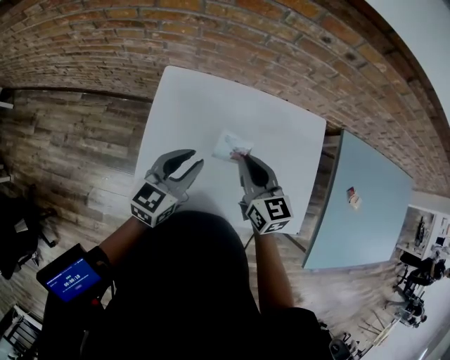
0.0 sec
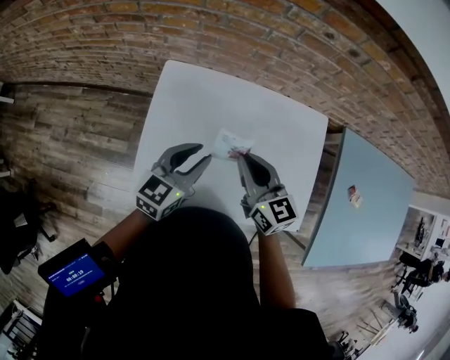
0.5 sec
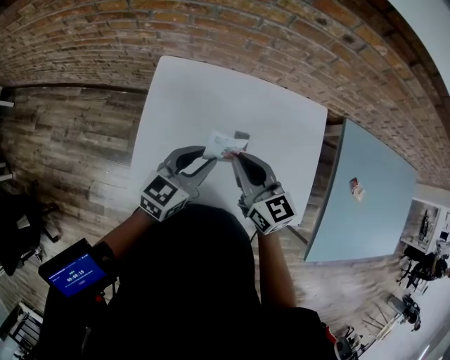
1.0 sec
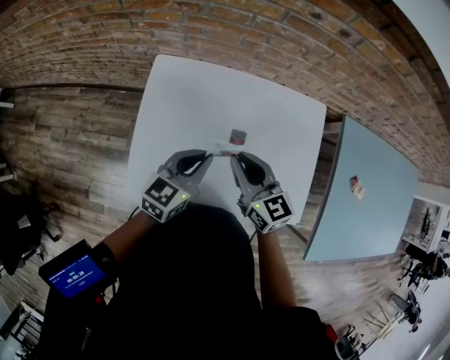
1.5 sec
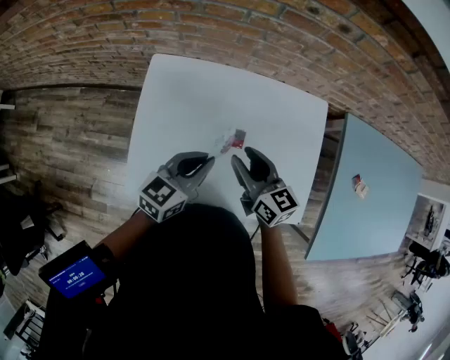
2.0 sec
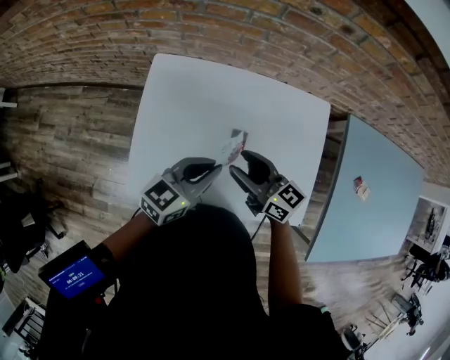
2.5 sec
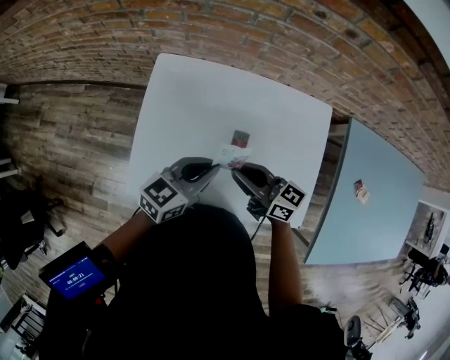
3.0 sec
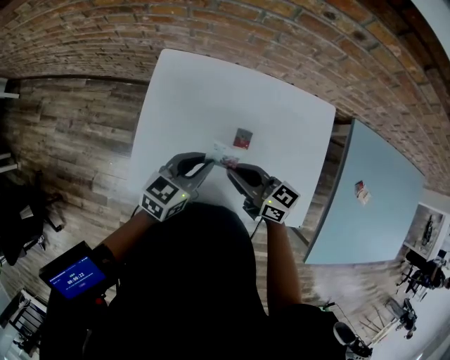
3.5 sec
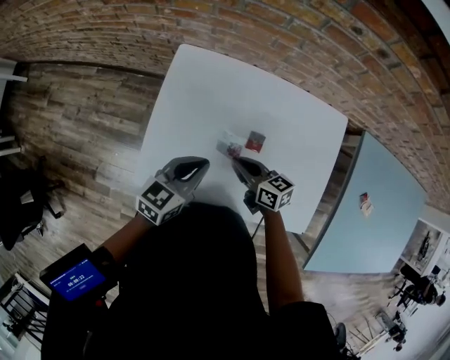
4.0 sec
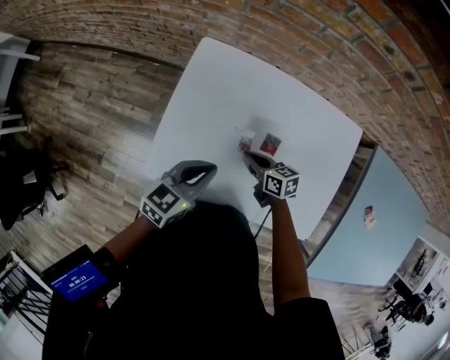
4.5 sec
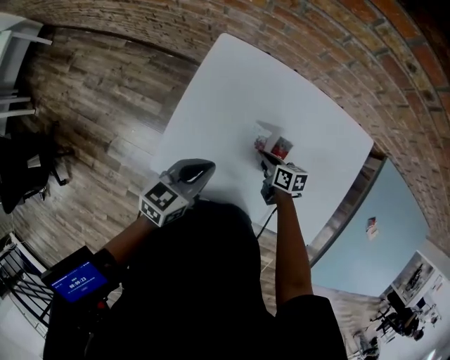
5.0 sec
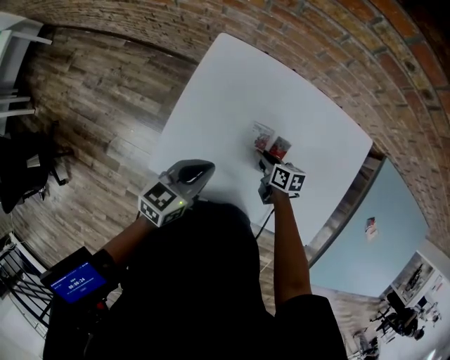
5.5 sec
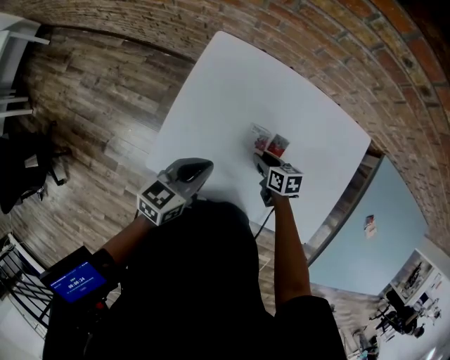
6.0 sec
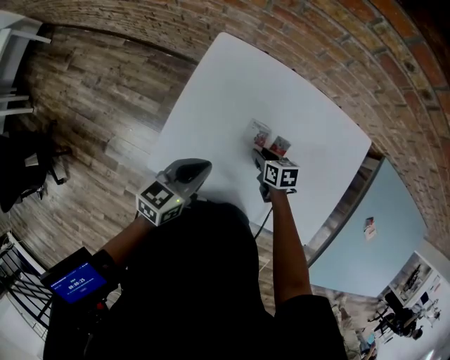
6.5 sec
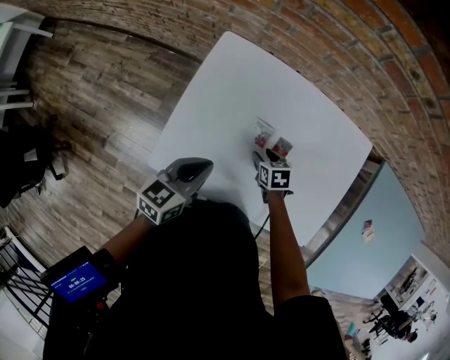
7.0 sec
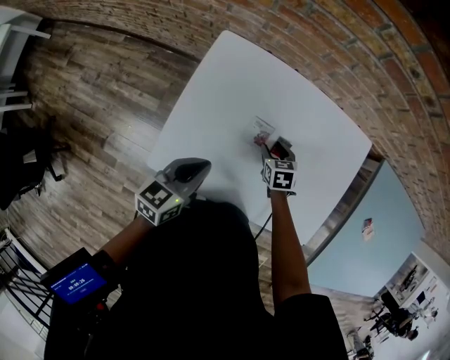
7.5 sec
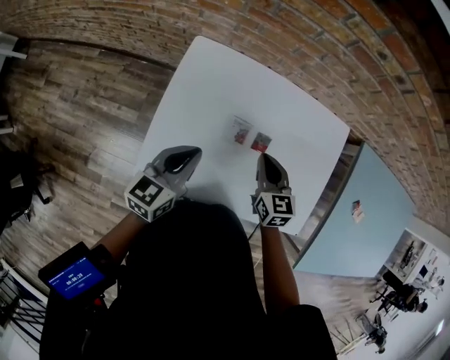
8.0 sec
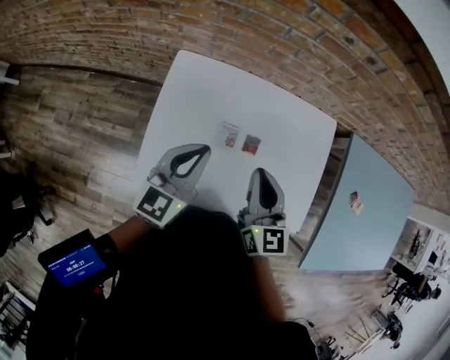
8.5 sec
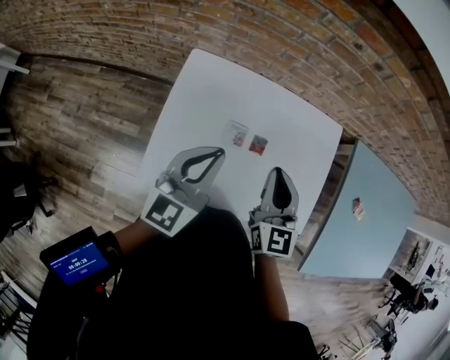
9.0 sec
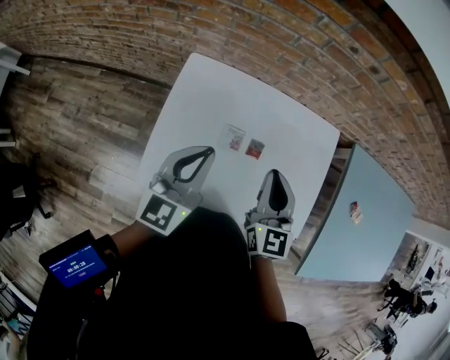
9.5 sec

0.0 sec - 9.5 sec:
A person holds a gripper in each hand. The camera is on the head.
0.0 sec - 2.0 sec: The right gripper opens its fingers. The left gripper shifts some 10 cm to the right, and closes its fingers.
2.0 sec - 4.0 sec: The left gripper travels to the left by roughly 5 cm. Meanwhile the right gripper moves downward, approximately 10 cm, changes its angle by some 30 degrees, and closes up.
4.0 sec - 5.5 sec: The left gripper ends up approximately 5 cm from where it was, while the right gripper moves downward, about 10 cm, and rotates roughly 20 degrees.
5.5 sec - 7.5 sec: The right gripper turns by some 40 degrees, and opens its fingers.
7.5 sec - 9.5 sec: The left gripper moves upward, about 15 cm, and changes its angle by about 30 degrees. The right gripper goes approximately 30 cm upward, tilts its fingers some 40 degrees upward, and closes its fingers.

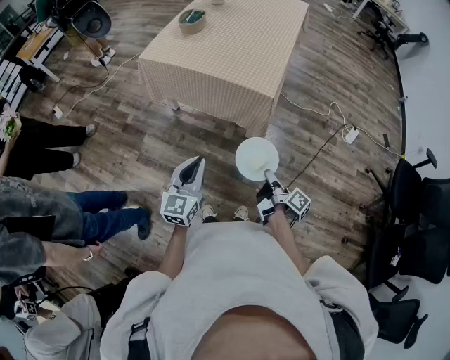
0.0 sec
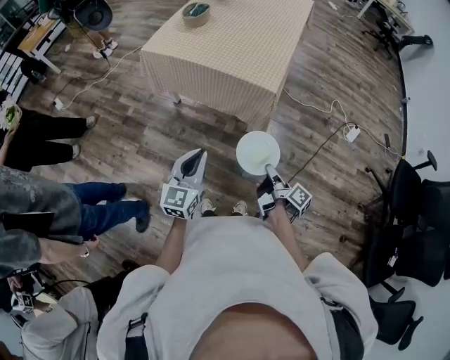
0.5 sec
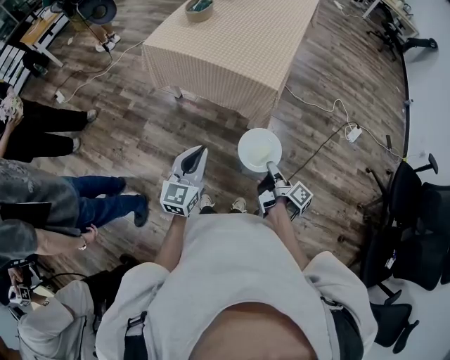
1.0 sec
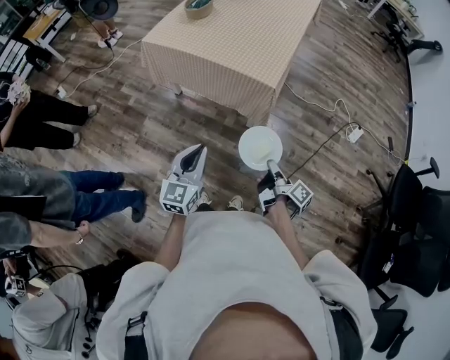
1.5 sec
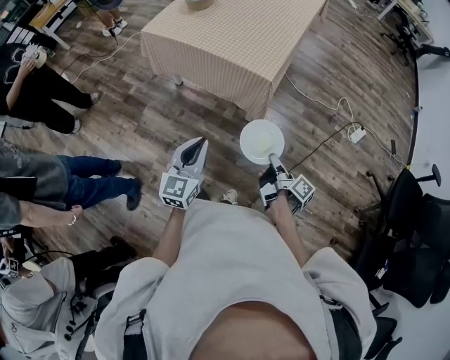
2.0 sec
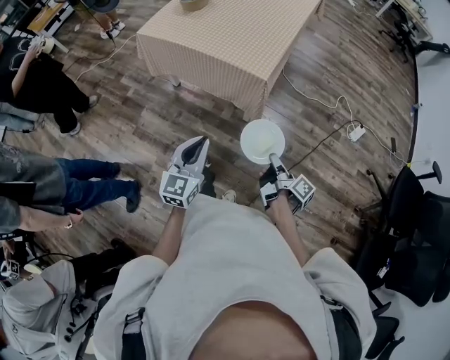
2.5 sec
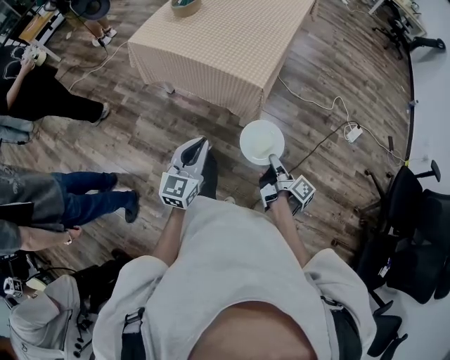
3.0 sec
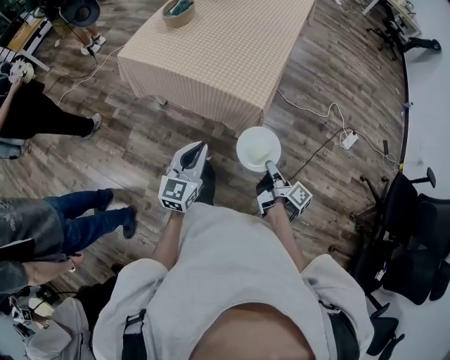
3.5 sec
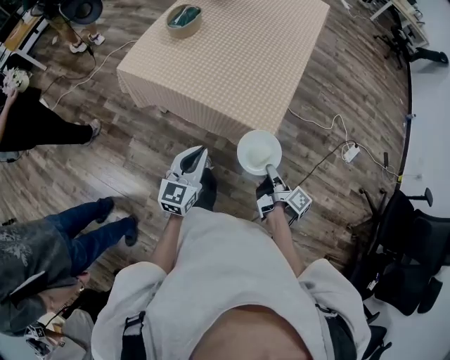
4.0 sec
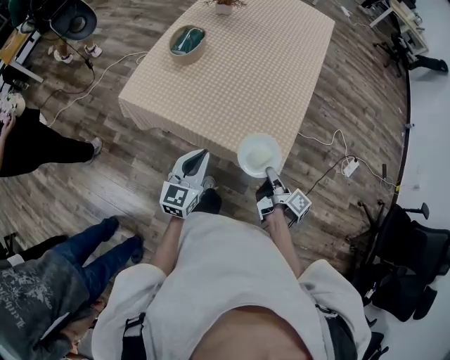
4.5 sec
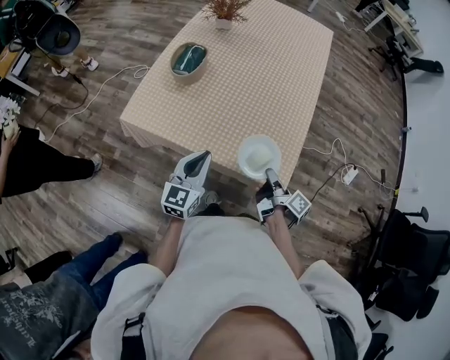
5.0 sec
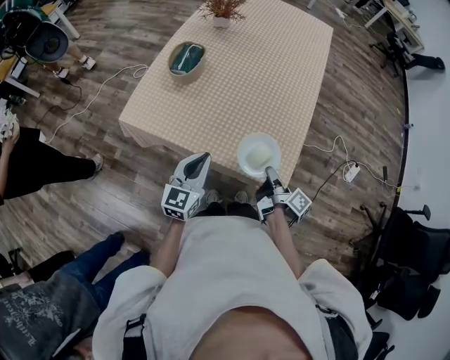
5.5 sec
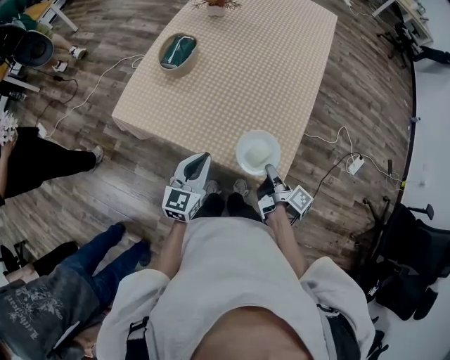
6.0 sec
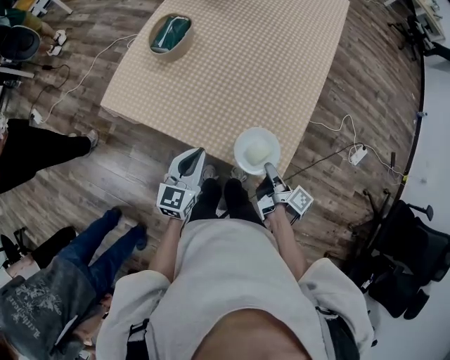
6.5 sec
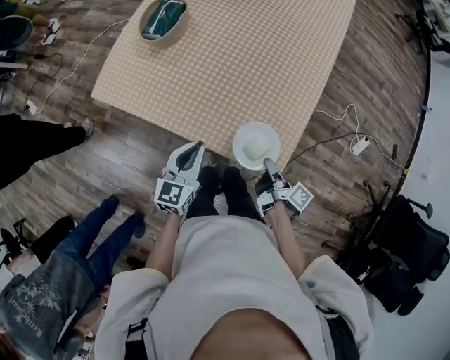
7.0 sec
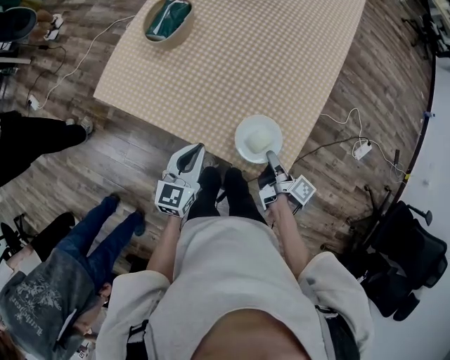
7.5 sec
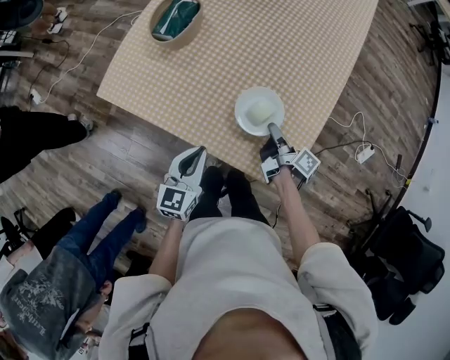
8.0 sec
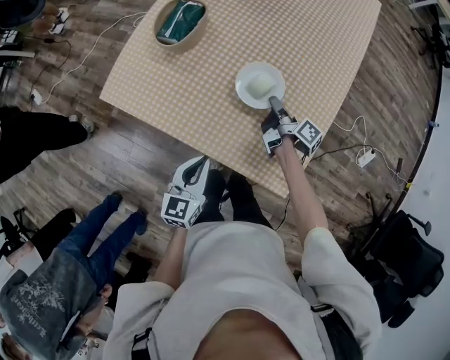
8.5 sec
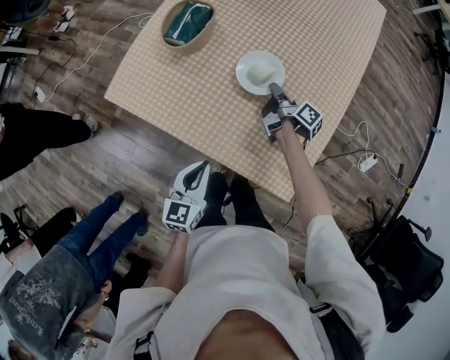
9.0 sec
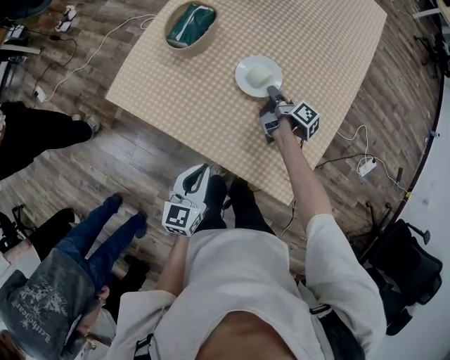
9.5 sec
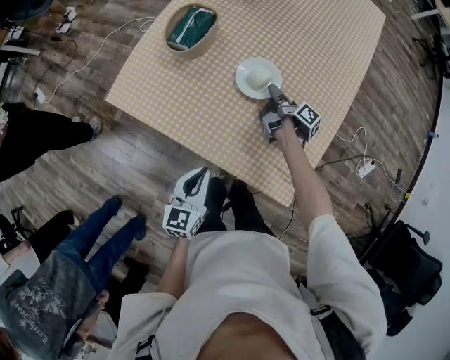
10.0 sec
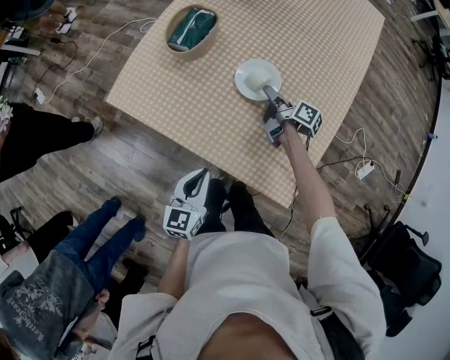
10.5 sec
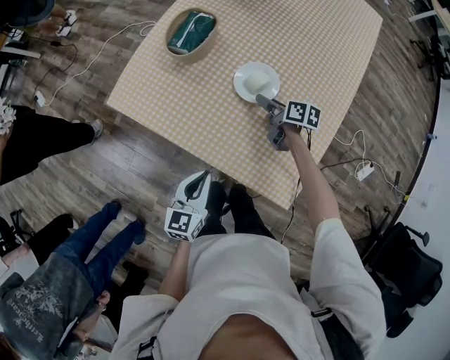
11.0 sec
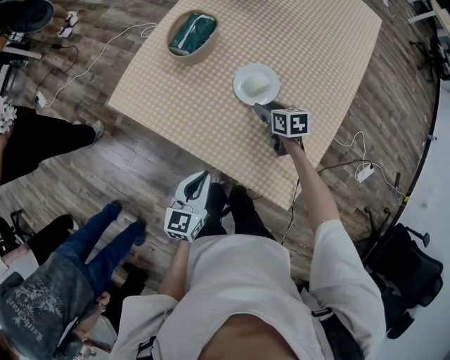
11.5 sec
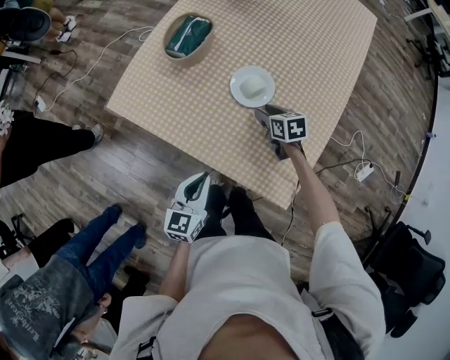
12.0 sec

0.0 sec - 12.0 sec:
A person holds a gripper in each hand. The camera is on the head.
0.0 sec - 2.0 sec: The left gripper shifts by about 10 cm.
2.0 sec - 4.0 sec: The left gripper changes place by roughly 30 cm.
4.0 sec - 6.0 sec: The left gripper shifts by approximately 20 cm.
6.0 sec - 8.0 sec: The left gripper is displaced downward by roughly 10 cm.

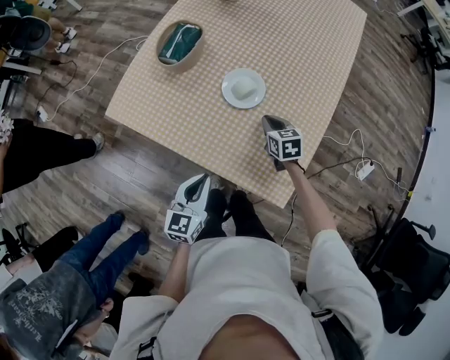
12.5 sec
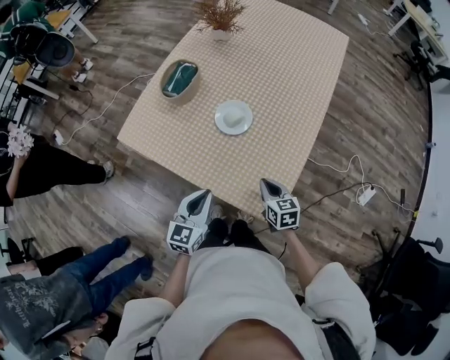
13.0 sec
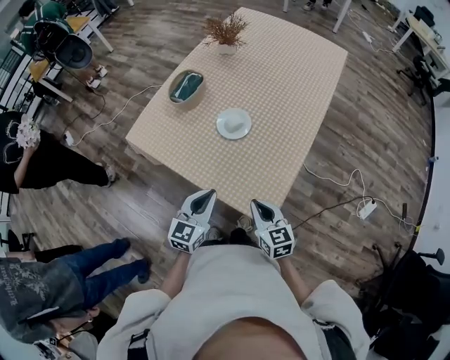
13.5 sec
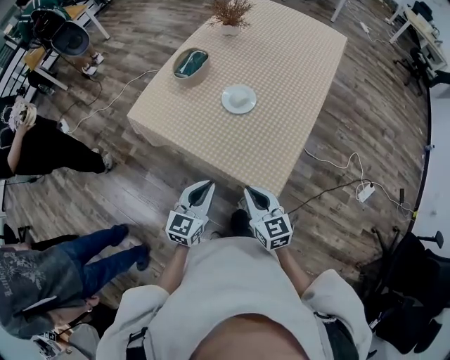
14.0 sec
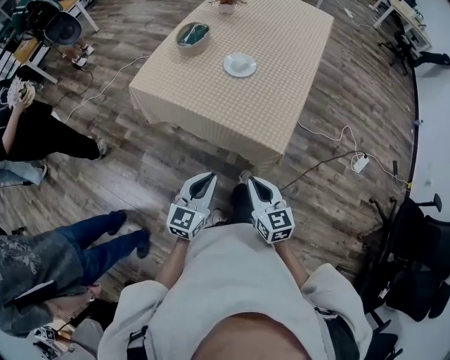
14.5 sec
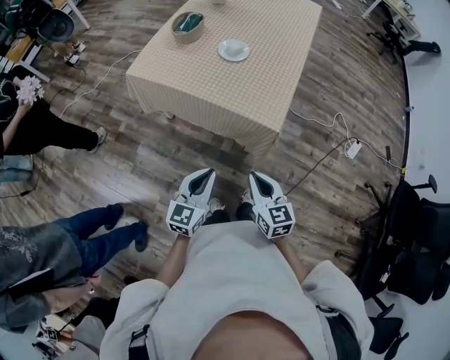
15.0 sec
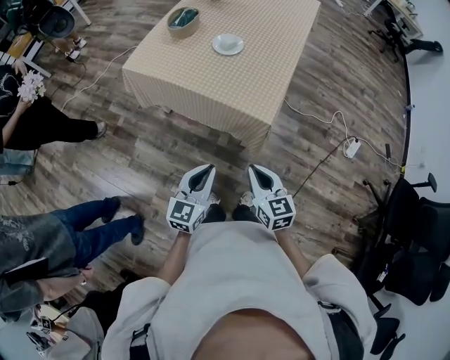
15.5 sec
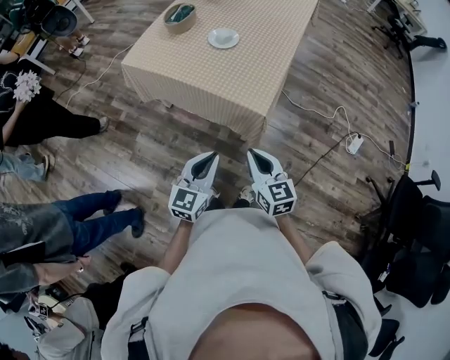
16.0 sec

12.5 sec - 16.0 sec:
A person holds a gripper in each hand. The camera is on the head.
12.5 sec - 14.5 sec: The left gripper moves some 25 cm.
14.5 sec - 16.0 sec: The left gripper ends up roughly 10 cm from where it was.

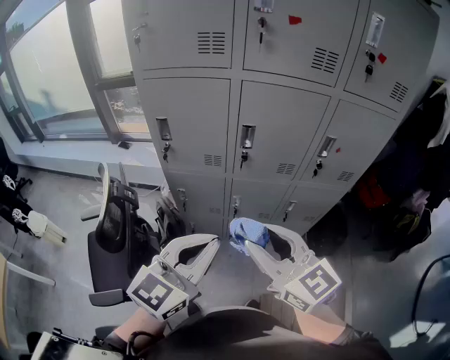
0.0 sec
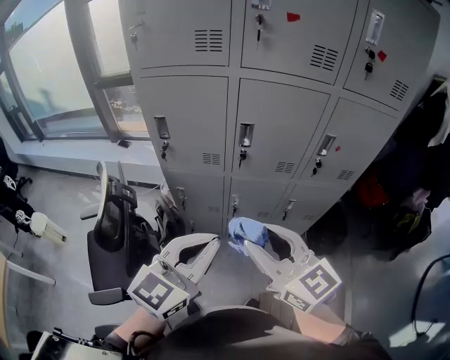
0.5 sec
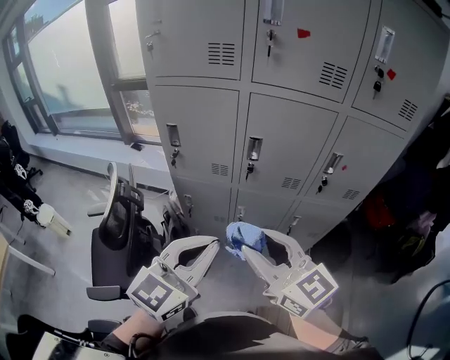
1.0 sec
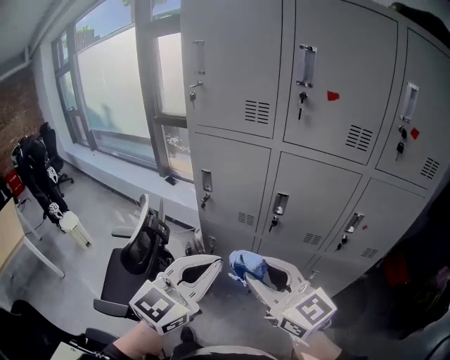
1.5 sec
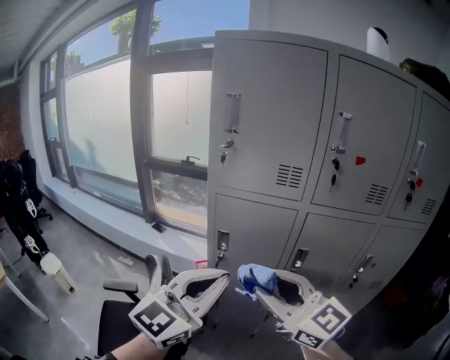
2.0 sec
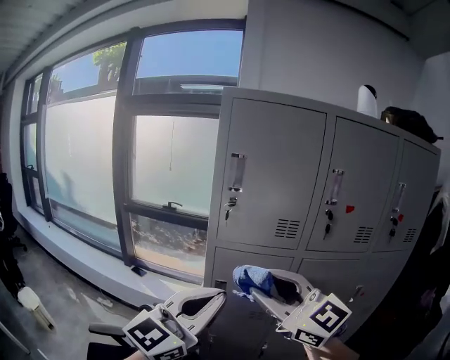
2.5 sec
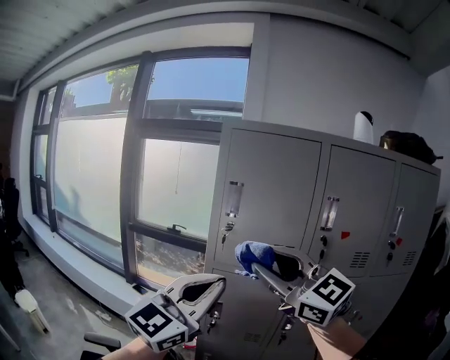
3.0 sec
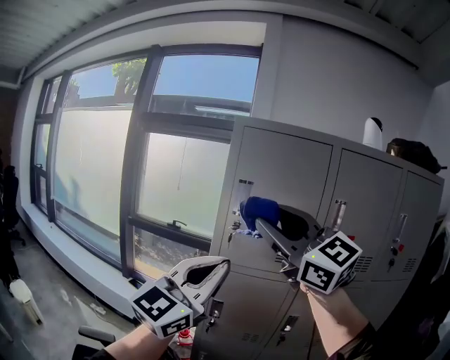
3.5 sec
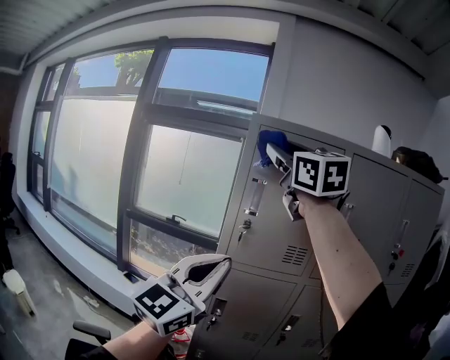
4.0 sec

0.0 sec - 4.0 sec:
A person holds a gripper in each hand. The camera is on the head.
0.0 sec - 2.0 sec: The left gripper moves upward, to the left and forward, approximately 25 cm. The right gripper shifts some 20 cm to the left, upward and forward.
2.0 sec - 4.0 sec: The right gripper shifts some 50 cm upward and forward, and swivels about 30 degrees; the left gripper goes approximately 20 cm upward, to the left and forward.
